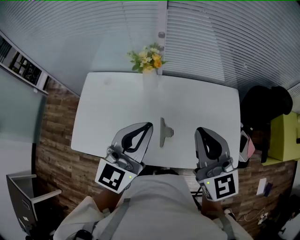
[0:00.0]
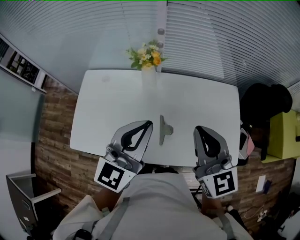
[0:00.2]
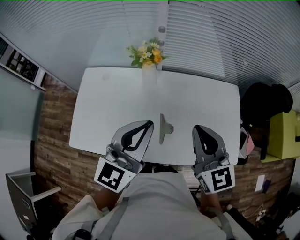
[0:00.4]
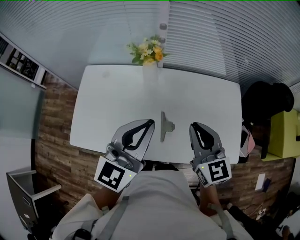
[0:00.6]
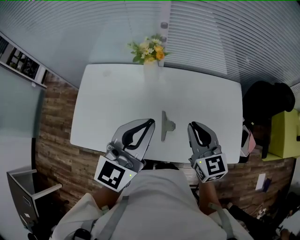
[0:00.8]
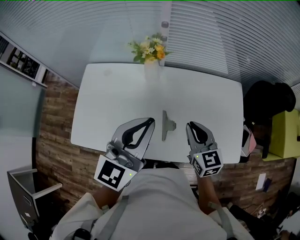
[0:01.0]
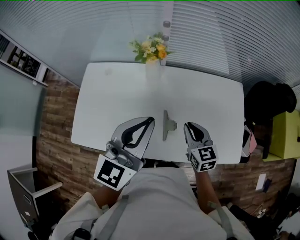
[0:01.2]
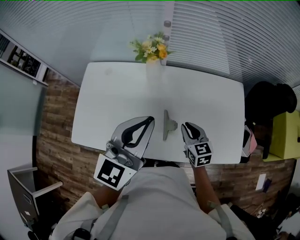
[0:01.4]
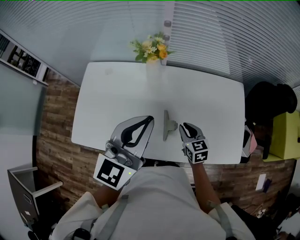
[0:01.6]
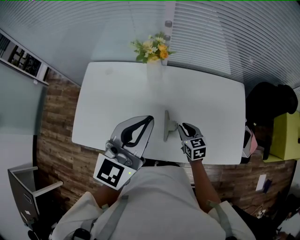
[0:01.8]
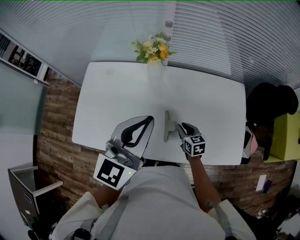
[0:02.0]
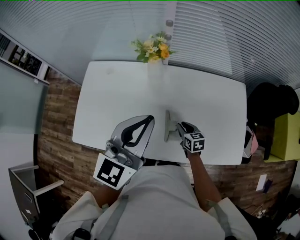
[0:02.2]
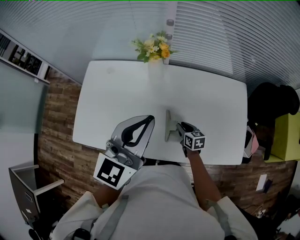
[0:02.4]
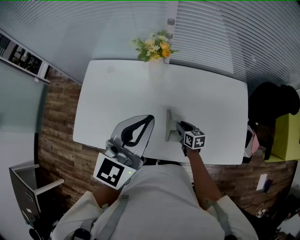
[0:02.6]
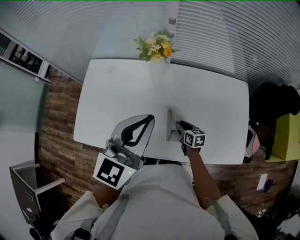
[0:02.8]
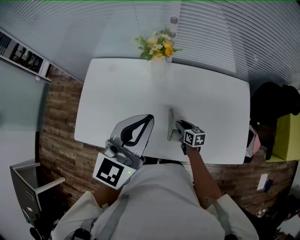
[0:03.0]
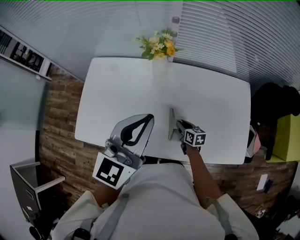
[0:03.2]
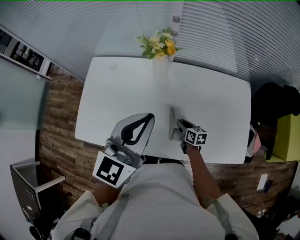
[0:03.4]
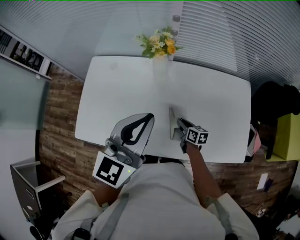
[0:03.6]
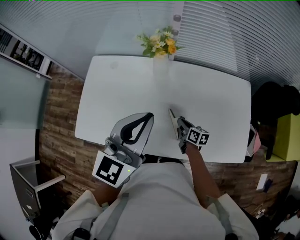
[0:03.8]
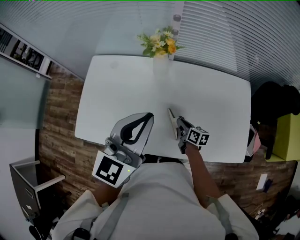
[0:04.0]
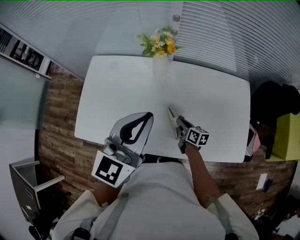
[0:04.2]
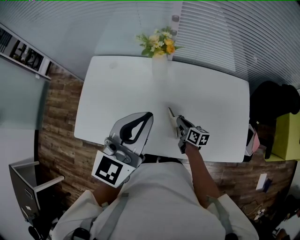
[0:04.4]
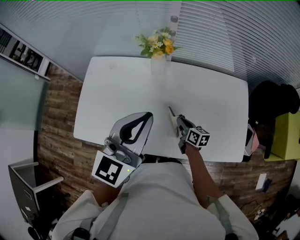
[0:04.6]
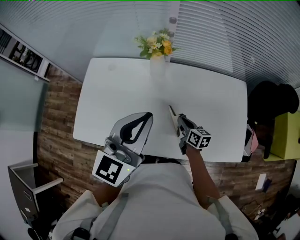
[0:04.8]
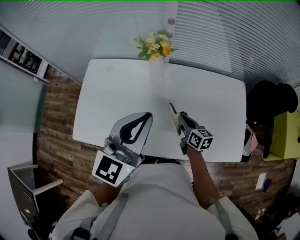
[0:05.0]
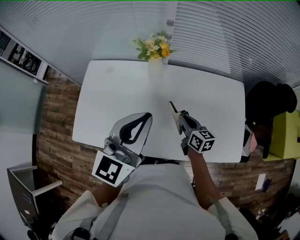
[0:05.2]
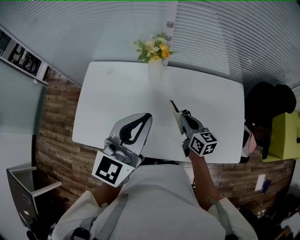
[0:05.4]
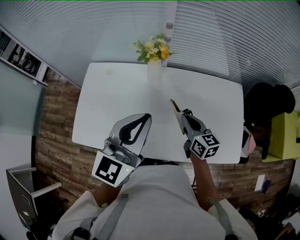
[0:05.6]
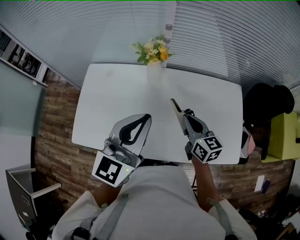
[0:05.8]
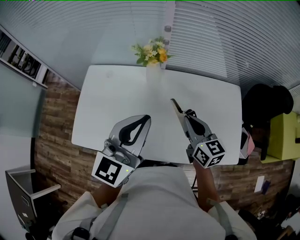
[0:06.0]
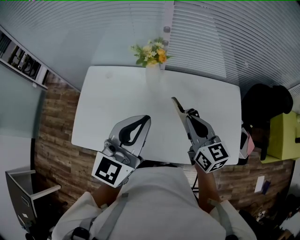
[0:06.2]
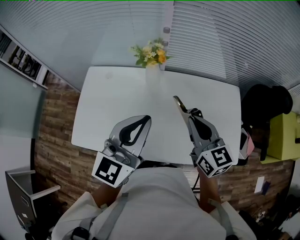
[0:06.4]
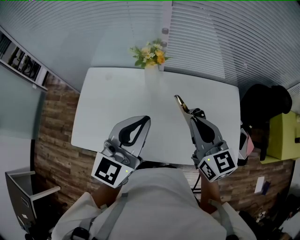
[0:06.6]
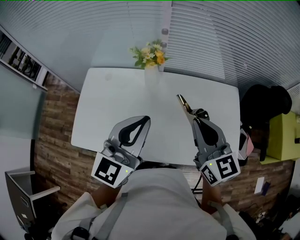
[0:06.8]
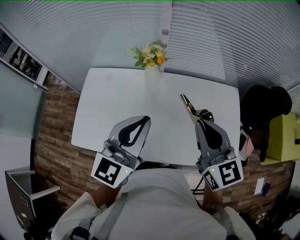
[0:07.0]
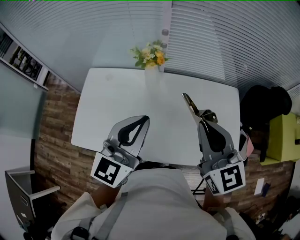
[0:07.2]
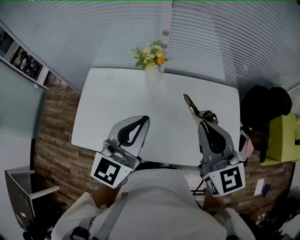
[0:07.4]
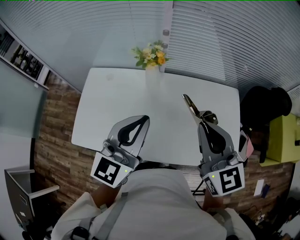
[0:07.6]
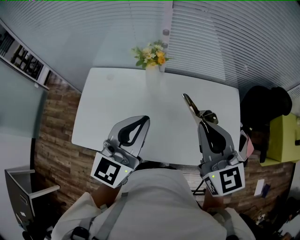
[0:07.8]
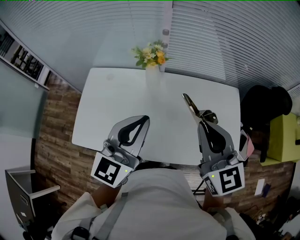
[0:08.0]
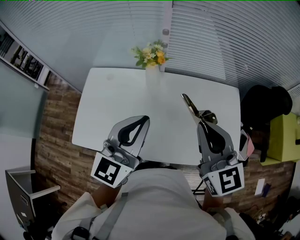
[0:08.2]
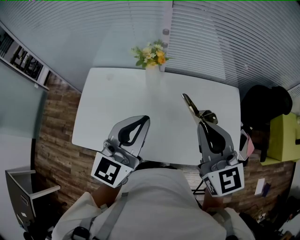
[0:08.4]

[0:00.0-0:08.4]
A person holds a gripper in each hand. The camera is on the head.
0.0 to 1.4 s: The right gripper goes about 25 cm downward, and swivels approximately 30 degrees.
1.4 to 2.8 s: The right gripper heads downward, covering about 15 cm, and changes its angle by some 30 degrees.
2.8 to 4.2 s: The right gripper closes its fingers.
4.2 to 5.6 s: The right gripper is displaced upward by roughly 20 cm, and turns by roughly 30 degrees.
5.6 to 7.0 s: The right gripper moves upward, roughly 20 cm, and swivels approximately 30 degrees.
7.0 to 8.4 s: The grippers stay close to where they were, moving slightly.

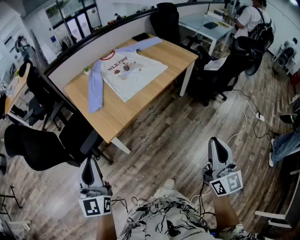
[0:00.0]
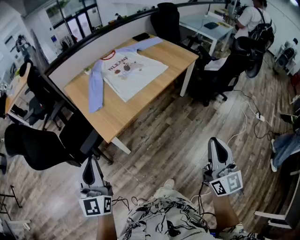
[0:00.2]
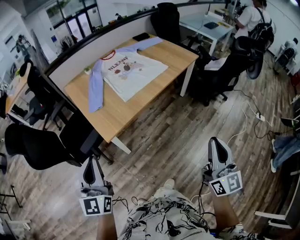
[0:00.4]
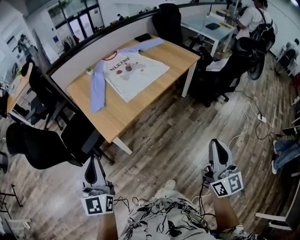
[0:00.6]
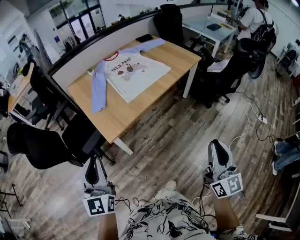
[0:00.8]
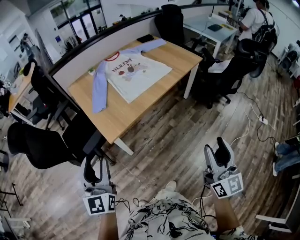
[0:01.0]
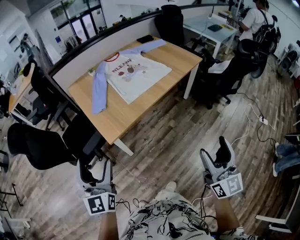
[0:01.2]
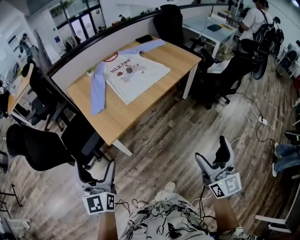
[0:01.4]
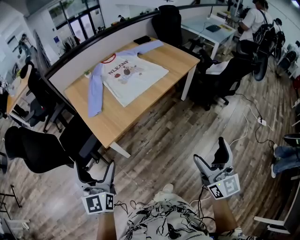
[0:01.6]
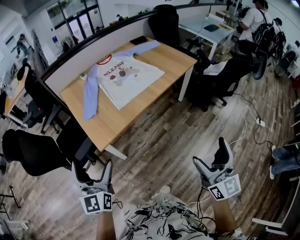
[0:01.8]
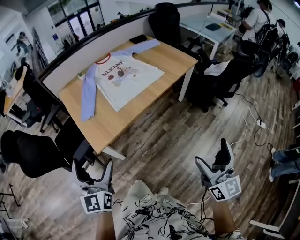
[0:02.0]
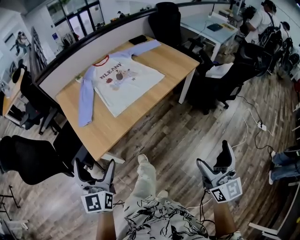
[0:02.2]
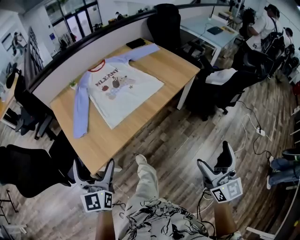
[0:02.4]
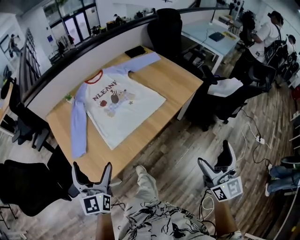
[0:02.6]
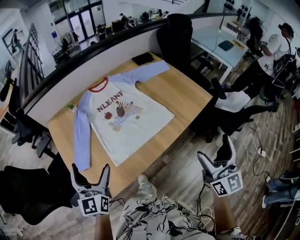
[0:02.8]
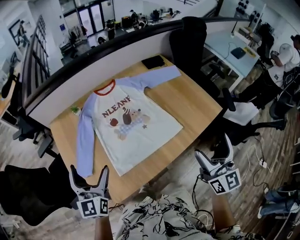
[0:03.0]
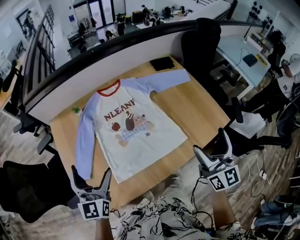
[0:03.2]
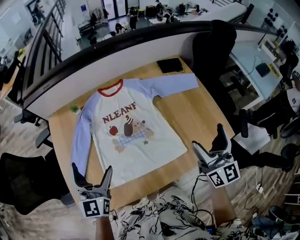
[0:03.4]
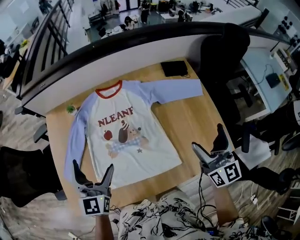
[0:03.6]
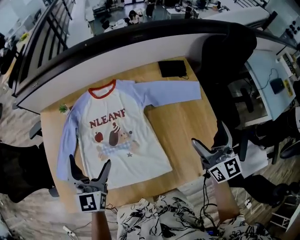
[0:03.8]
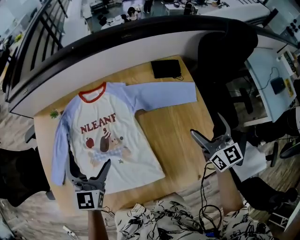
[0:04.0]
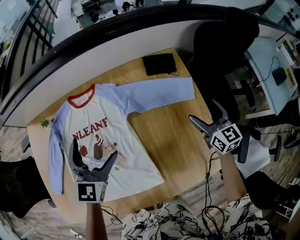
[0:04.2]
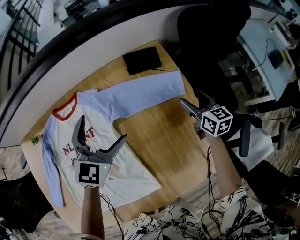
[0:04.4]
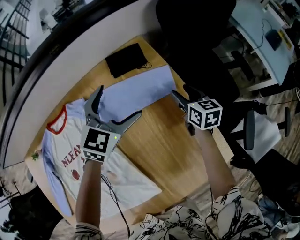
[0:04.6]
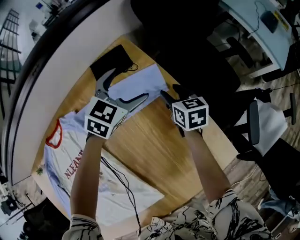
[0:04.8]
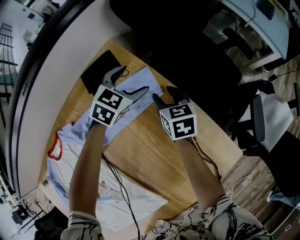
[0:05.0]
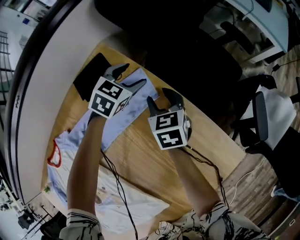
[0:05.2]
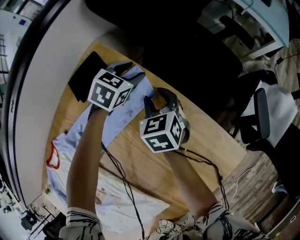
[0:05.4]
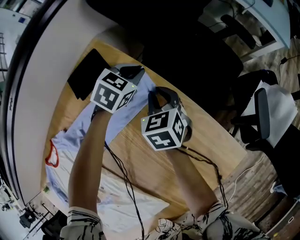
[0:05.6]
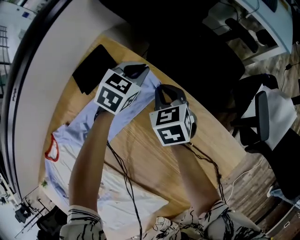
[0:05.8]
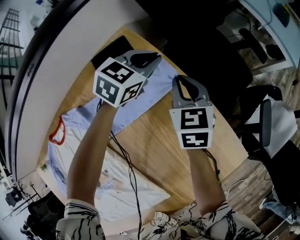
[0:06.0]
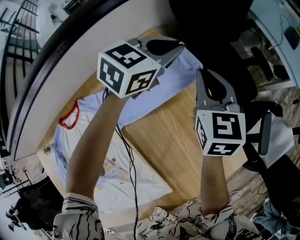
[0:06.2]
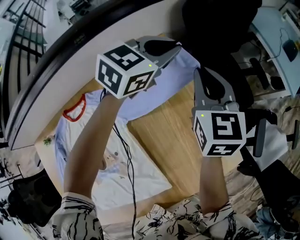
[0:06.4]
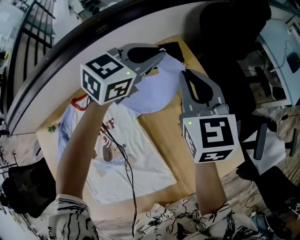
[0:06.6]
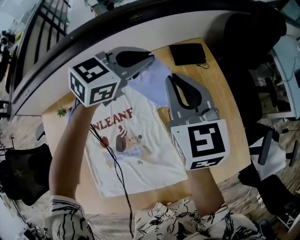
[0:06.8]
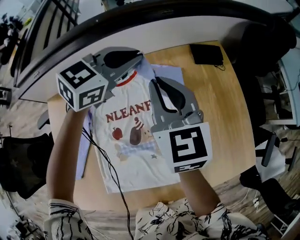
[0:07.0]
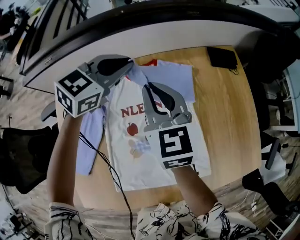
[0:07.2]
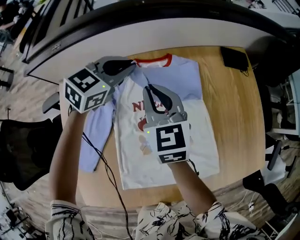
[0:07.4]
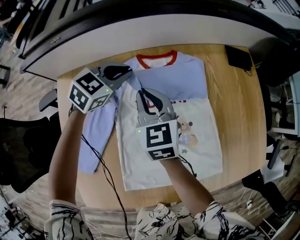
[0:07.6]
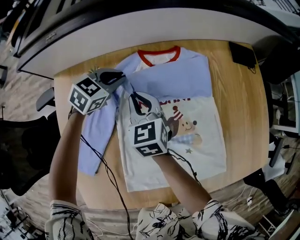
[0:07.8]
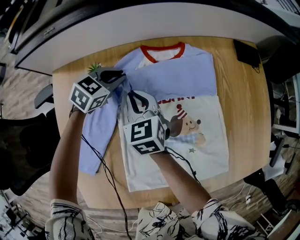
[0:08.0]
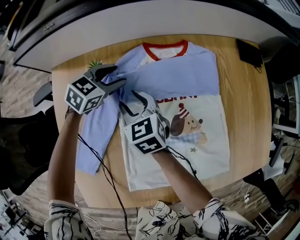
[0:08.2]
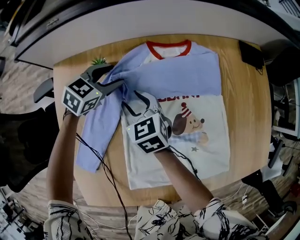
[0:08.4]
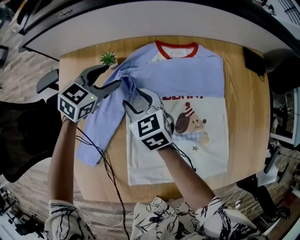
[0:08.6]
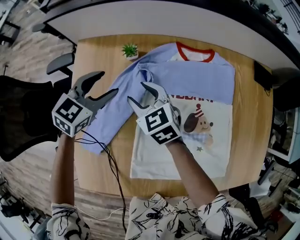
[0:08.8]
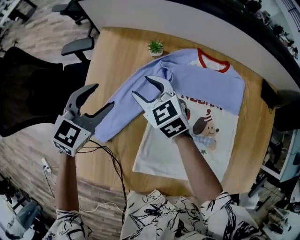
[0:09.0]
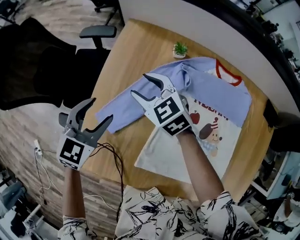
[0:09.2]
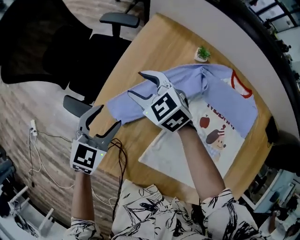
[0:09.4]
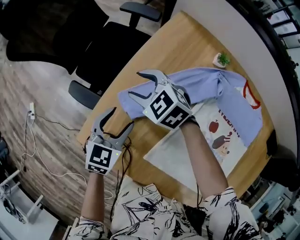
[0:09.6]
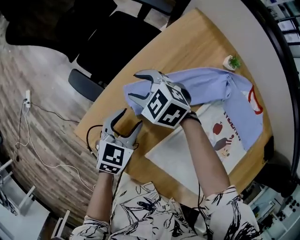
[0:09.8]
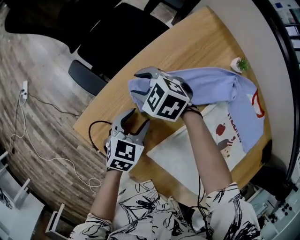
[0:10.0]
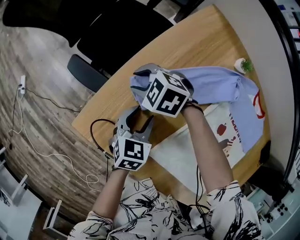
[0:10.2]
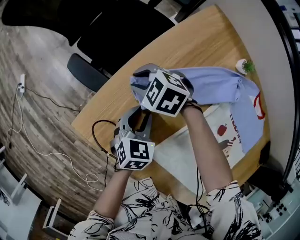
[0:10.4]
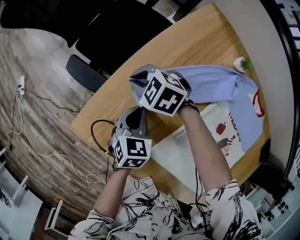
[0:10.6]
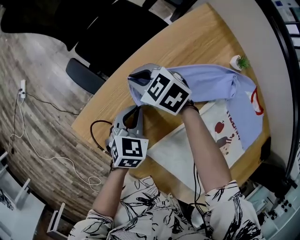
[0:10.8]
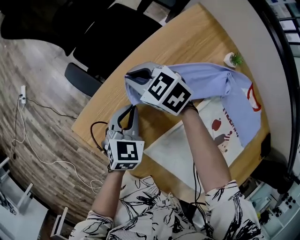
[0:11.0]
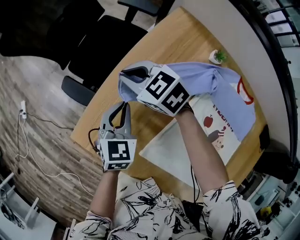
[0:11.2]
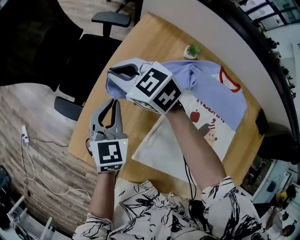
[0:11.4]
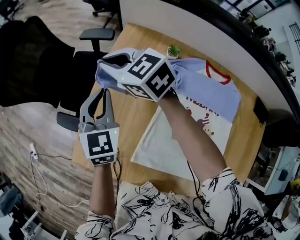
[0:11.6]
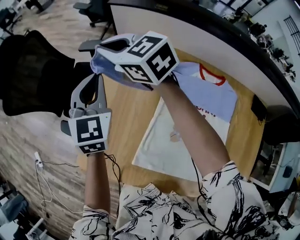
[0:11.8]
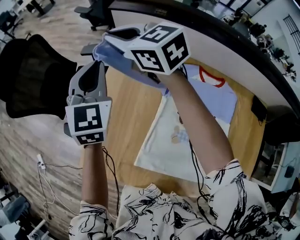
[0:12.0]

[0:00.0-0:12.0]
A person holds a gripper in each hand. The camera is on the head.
0.0 to 1.6 s: The right gripper opens its fingers. The left gripper opens up.
1.6 to 3.0 s: The two grippers travel together, forward, some 50 cm.
3.0 to 4.4 s: Both grippers are carried forward and to the right, some 60 cm. The right gripper travels downward by roughly 30 cm, and points its fingers about 30 degrees further downward. Meanwhile the left gripper turns by approximately 30 degrees.
4.4 to 6.0 s: The left gripper changes place by approximately 40 cm, turns by approximately 40 degrees, and closes up. The right gripper moves roughly 10 cm downward and comes back, swivels approximately 30 degrees, and closes.
6.0 to 7.6 s: The pair of grippers is taken approximately 70 cm. The left gripper changes its angle by approximately 30 degrees. Meanwhile the right gripper swivels some 40 degrees.
7.6 to 9.0 s: The right gripper changes place by some 25 cm, turns by approximately 40 degrees, and opens up, while the left gripper goes downward and returns, roughly 10 cm each way, turns by about 30 degrees, and opens up.
9.0 to 10.4 s: The left gripper moves some 30 cm, and changes its angle by roughly 50 degrees; the right gripper moves some 35 cm, and changes its angle by roughly 70 degrees.
10.4 to 12.0 s: Both grippers move upward and to the right, about 40 cm. The right gripper tips its fingers upward by approximately 40 degrees. Meanwhile the left gripper tips its fingers upward by roughly 30 degrees.

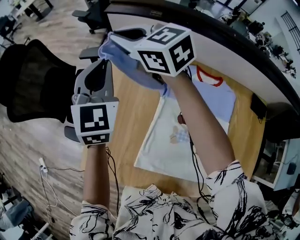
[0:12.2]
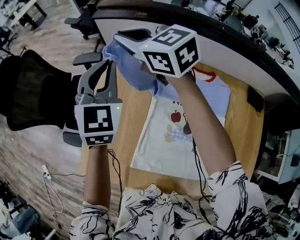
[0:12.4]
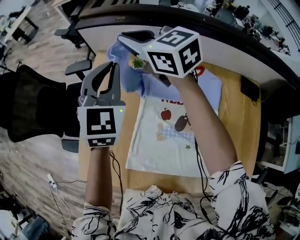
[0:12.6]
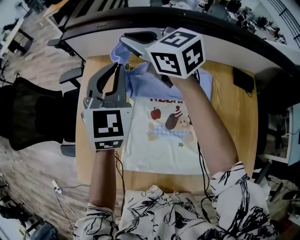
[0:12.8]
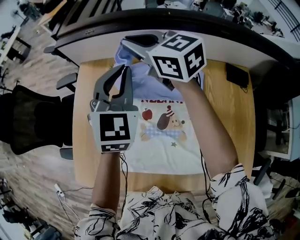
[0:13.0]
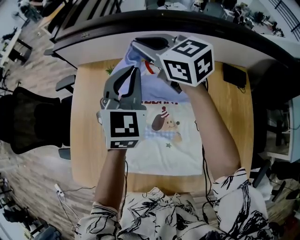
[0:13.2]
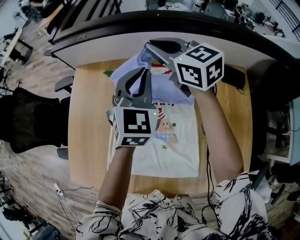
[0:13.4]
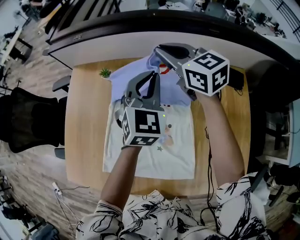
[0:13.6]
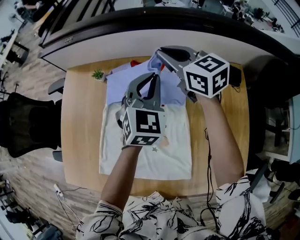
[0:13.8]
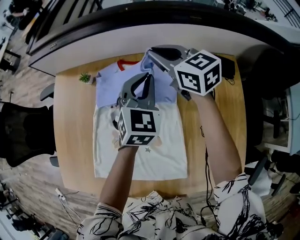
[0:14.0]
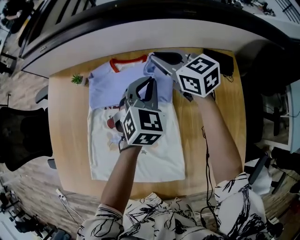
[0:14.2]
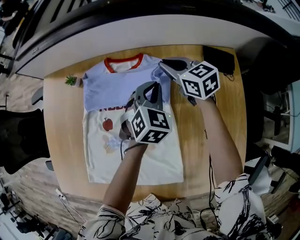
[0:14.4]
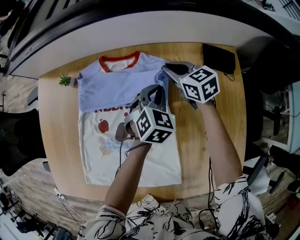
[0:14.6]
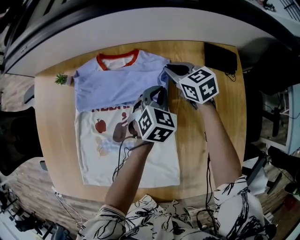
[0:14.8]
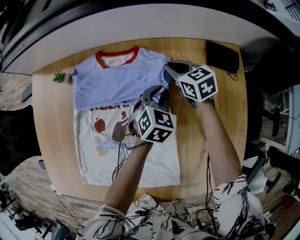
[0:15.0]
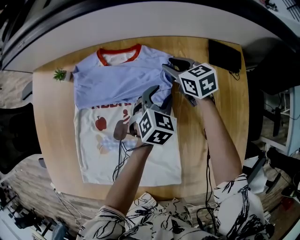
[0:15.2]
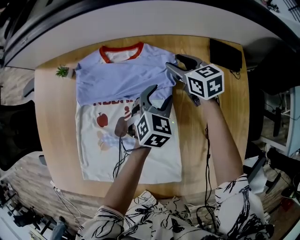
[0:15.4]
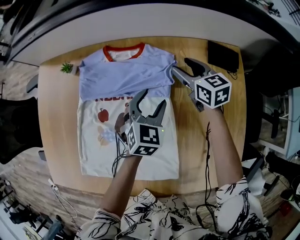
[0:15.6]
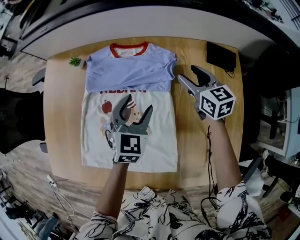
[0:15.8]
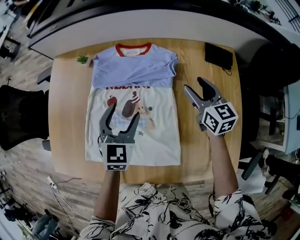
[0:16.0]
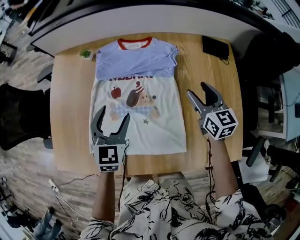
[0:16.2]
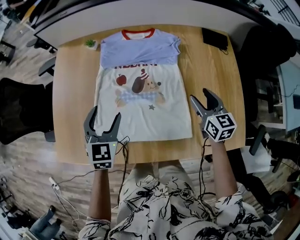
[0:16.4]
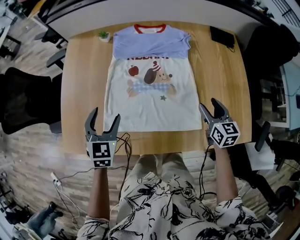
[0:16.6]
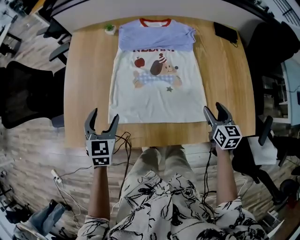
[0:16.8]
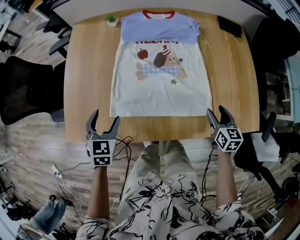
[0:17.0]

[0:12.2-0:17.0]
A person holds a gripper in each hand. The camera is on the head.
12.2 to 13.8 s: The two grippers travel together, roughly 50 cm. The left gripper turns by approximately 30 degrees, while the right gripper rotates some 30 degrees.
13.8 to 15.4 s: Both grippers move downward and to the right, approximately 25 cm. The left gripper changes its angle by roughly 20 degrees, and opens up. The right gripper changes its angle by roughly 20 degrees, and opens its fingers.
15.4 to 17.0 s: The left gripper moves to the left and backward, some 60 cm. Meanwhile the right gripper travels backward by some 50 cm, and rotates about 30 degrees.
